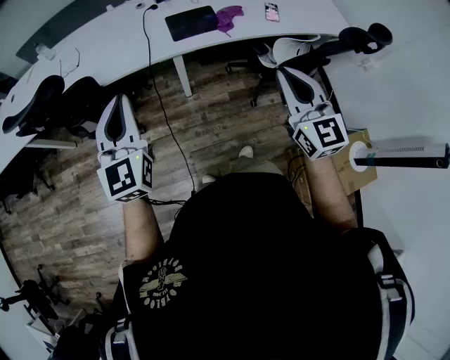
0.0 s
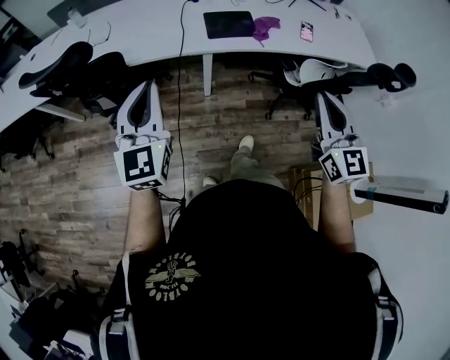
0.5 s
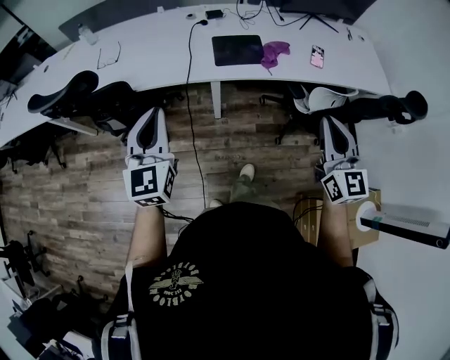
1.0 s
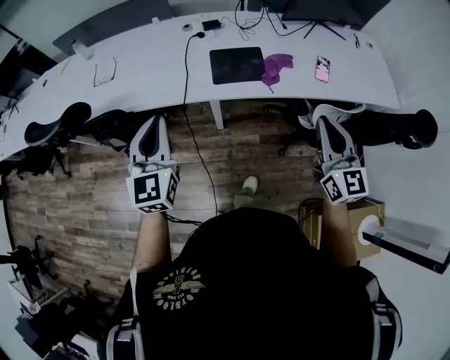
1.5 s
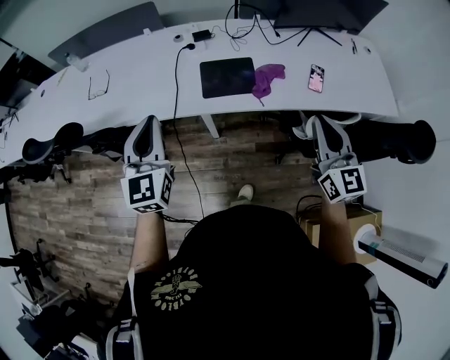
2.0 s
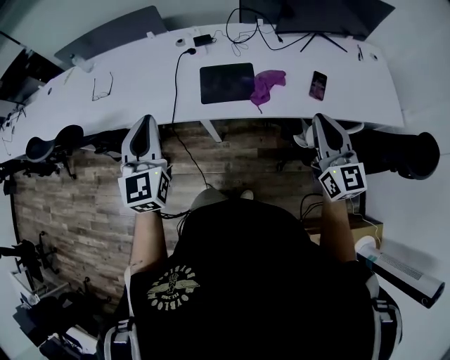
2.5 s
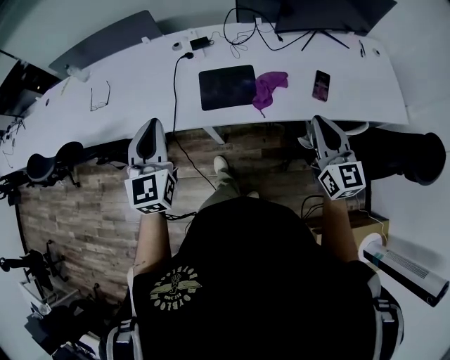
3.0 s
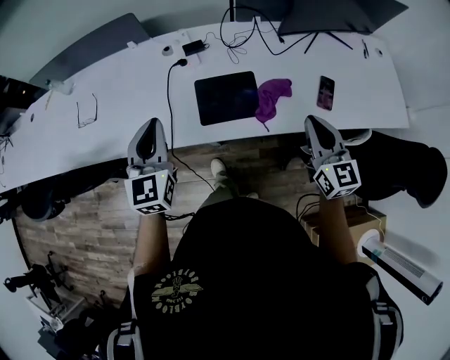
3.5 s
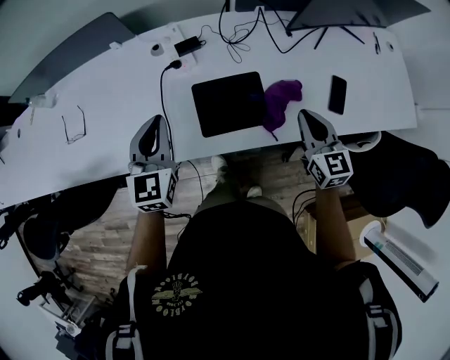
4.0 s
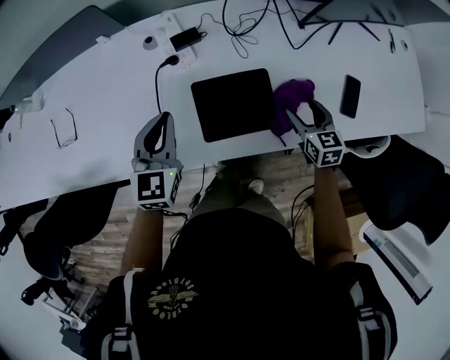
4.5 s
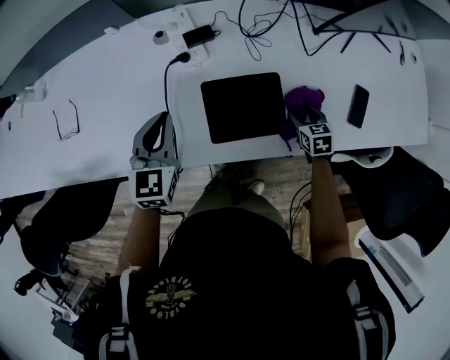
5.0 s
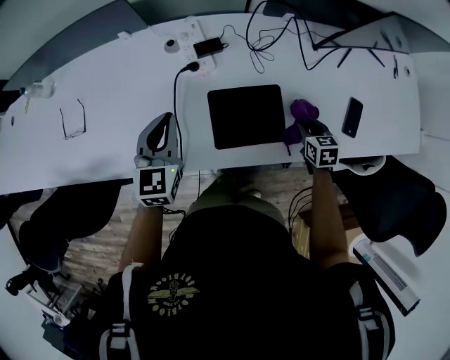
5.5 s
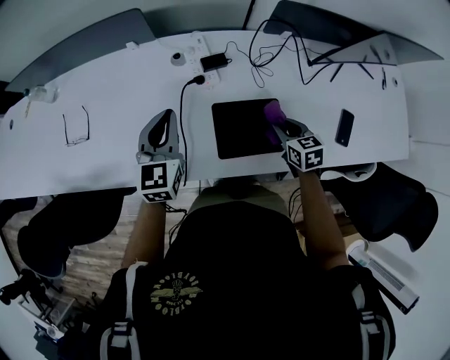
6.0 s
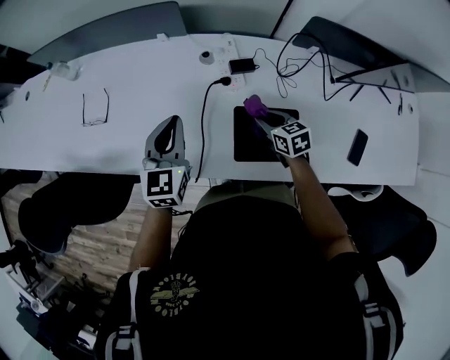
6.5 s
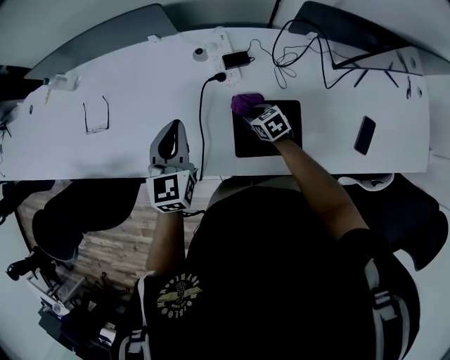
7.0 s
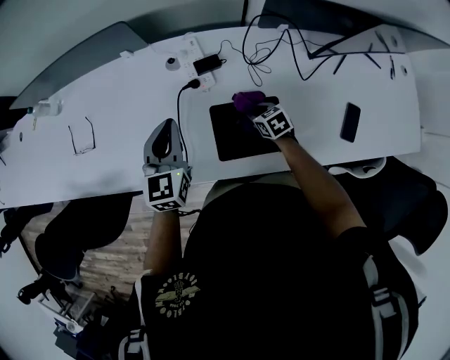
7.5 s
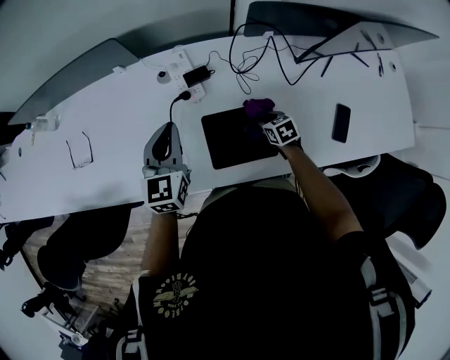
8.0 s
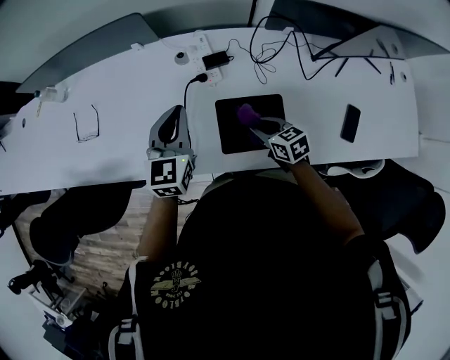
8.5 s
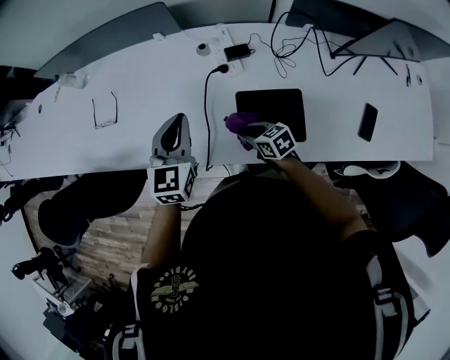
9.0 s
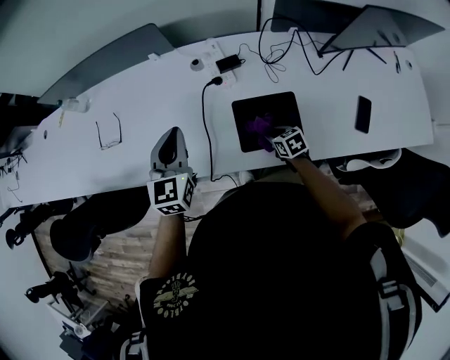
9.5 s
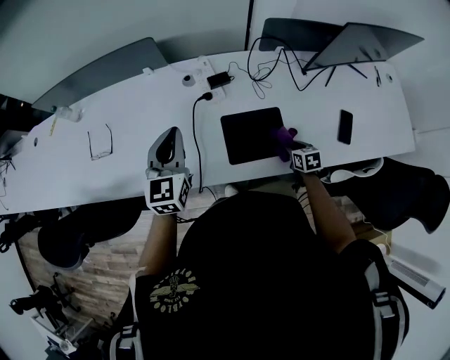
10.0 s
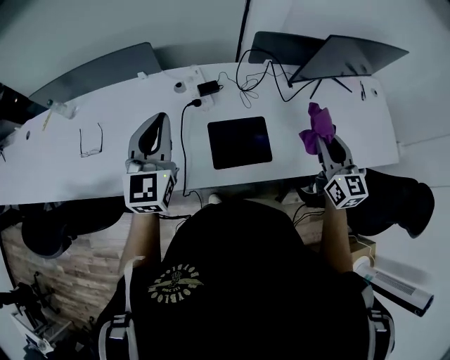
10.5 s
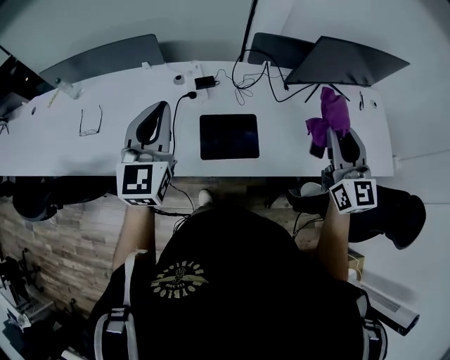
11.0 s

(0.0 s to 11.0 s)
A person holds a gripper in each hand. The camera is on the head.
0.0 s - 2.0 s: The left gripper moves forward, some 20 cm; the right gripper shifts approximately 25 cm forward and to the right.
2.0 s - 3.5 s: The left gripper shifts approximately 15 cm forward, while the right gripper moves forward and downward, approximately 20 cm.
3.5 s - 5.5 s: The right gripper heads downward and forward, covering roughly 30 cm, tilts its fingers approximately 40 degrees downward, and opens, then closes again, while the left gripper moves forward and downward, roughly 20 cm.
5.5 s - 7.5 s: The right gripper changes place by about 20 cm, and turns by roughly 20 degrees.
7.5 s - 9.0 s: The left gripper heads to the left, covering some 5 cm, while the right gripper heads to the left and backward, covering some 15 cm.
9.0 s - 11.0 s: The left gripper goes approximately 20 cm upward. The right gripper goes approximately 40 cm upward, and tips its fingers upward by roughly 40 degrees.

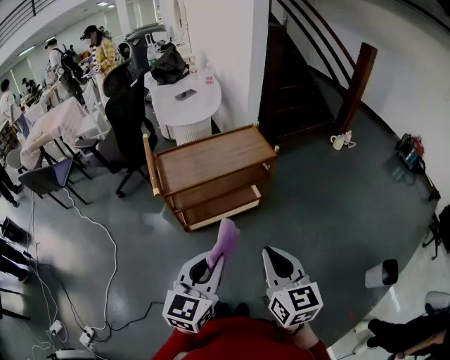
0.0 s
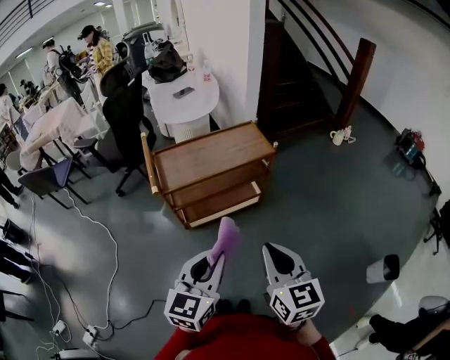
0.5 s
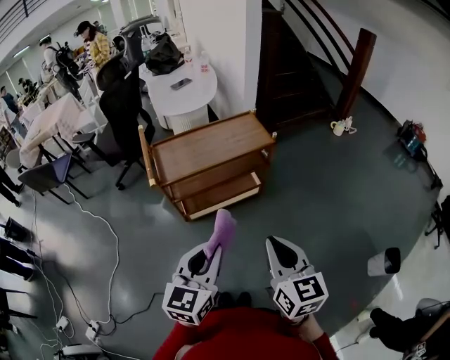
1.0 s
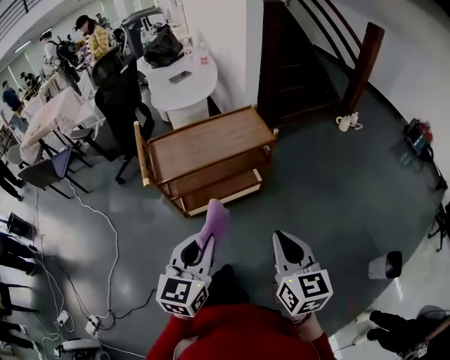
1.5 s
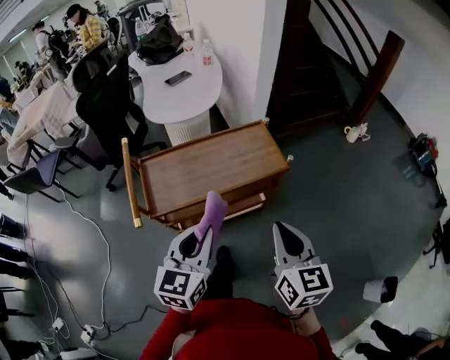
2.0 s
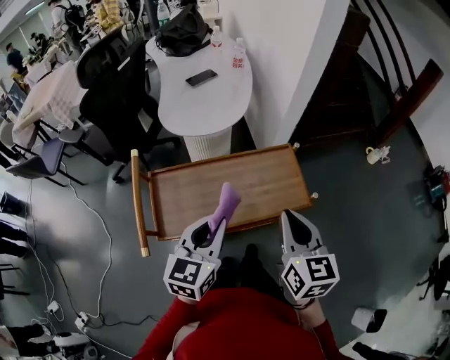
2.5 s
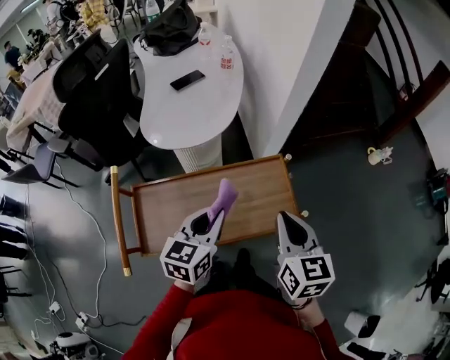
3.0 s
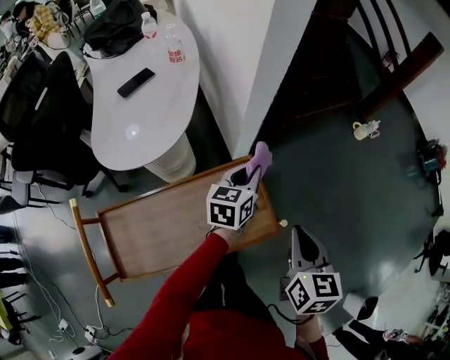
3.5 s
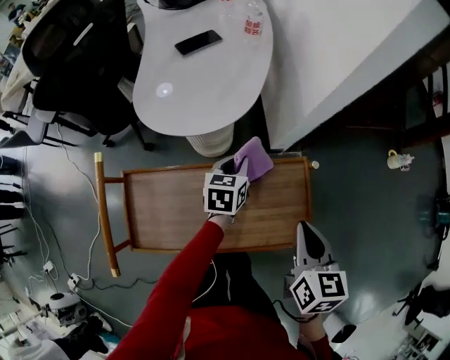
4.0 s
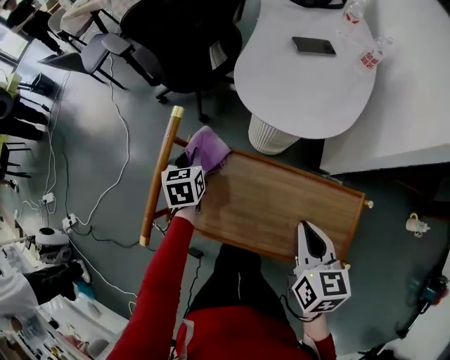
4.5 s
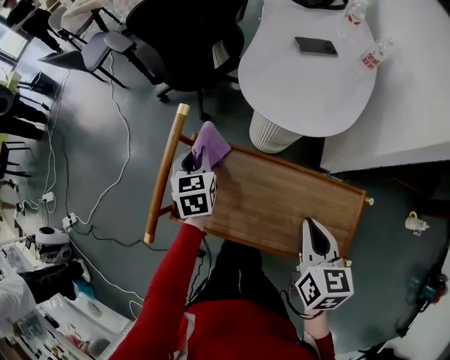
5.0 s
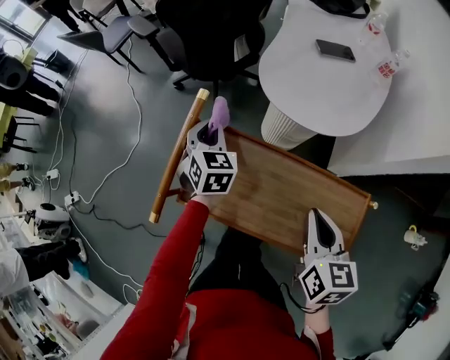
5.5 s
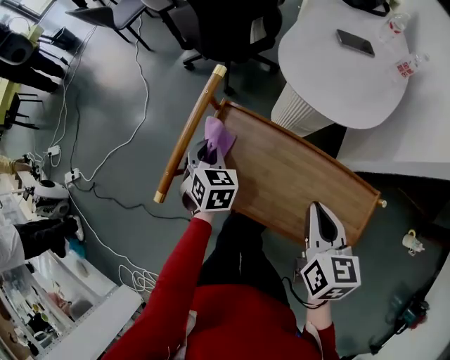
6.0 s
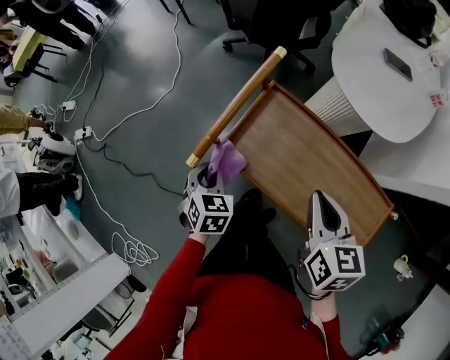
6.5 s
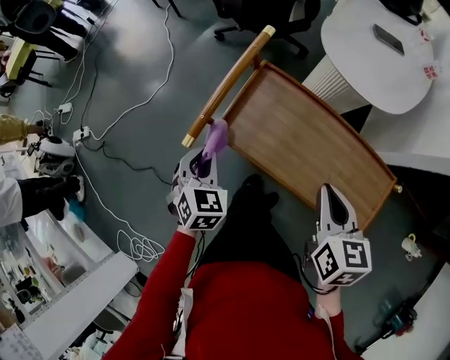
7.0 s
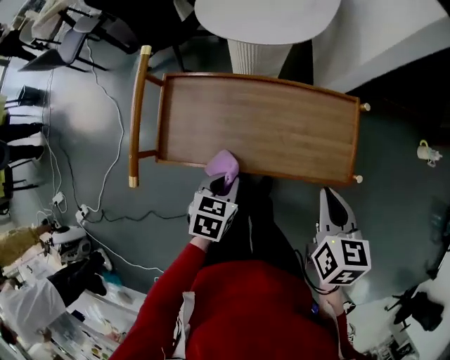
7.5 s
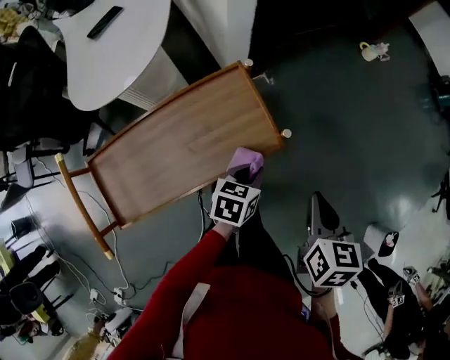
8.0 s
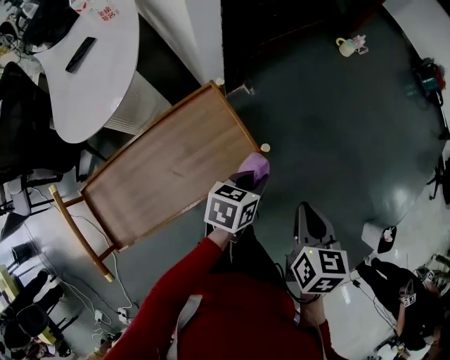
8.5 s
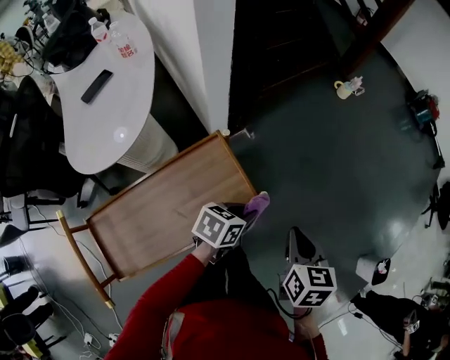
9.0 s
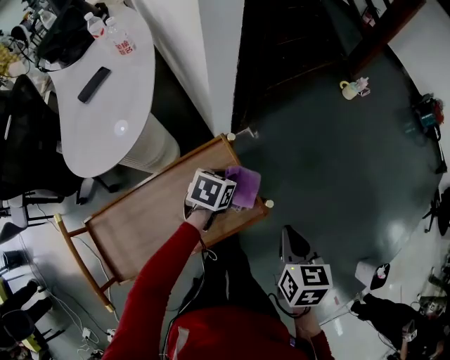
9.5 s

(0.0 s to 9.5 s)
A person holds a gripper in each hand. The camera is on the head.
0.0 s - 2.0 s: The grippers both shift forward by roughly 20 cm.
2.0 s - 4.0 s: The grippers both shift forward by approximately 40 cm. The right gripper rotates about 20 degrees, while the left gripper turns by about 30 degrees.
4.0 s - 5.5 s: The right gripper changes place by approximately 20 cm, and rotates approximately 30 degrees; the left gripper shifts by some 35 cm, and turns by approximately 50 degrees.
5.5 s - 7.5 s: The right gripper moves about 15 cm, while the left gripper moves up and down over some 10 cm, changing direction 2 times, and turns by about 40 degrees.
7.5 s - 9.5 s: The left gripper shifts by approximately 35 cm, and changes its angle by roughly 40 degrees. The right gripper changes place by some 15 cm, and swivels approximately 30 degrees.

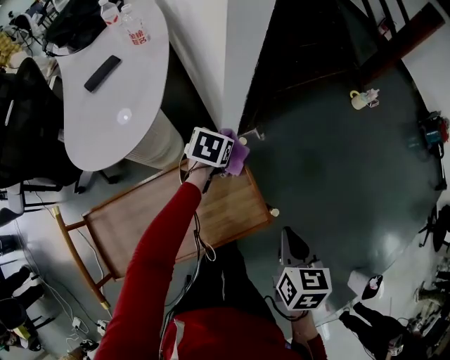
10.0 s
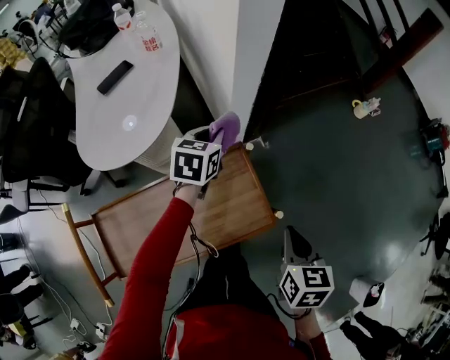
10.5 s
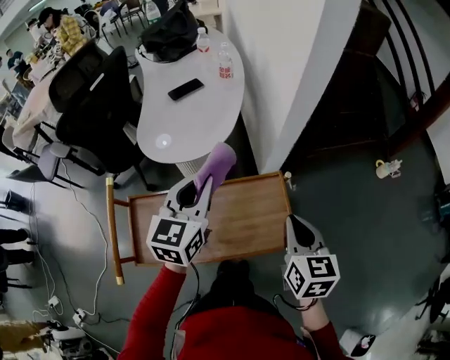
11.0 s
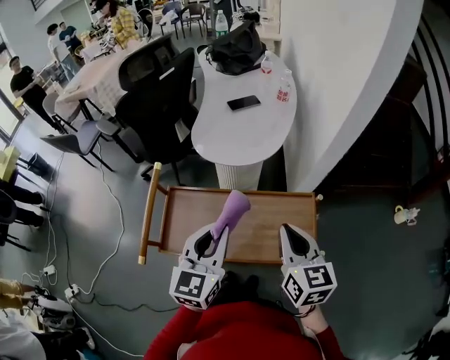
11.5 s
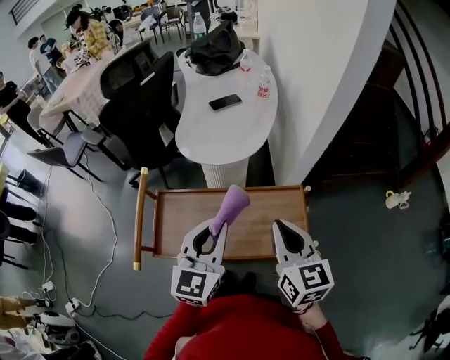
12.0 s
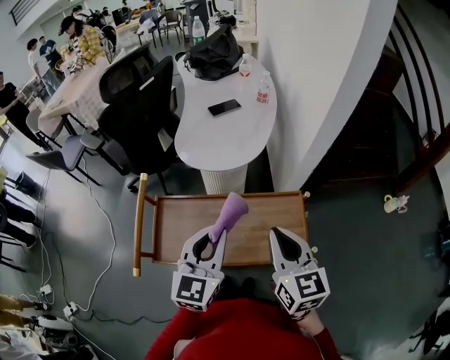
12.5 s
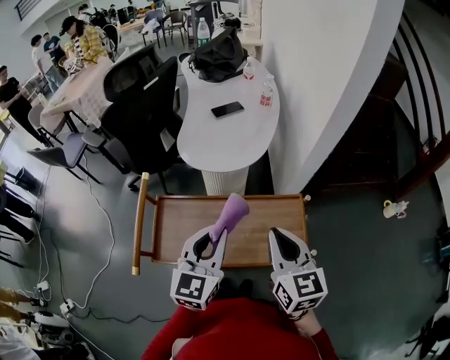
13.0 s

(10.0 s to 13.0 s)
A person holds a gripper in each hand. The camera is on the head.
10.0 s - 11.5 s: The left gripper ends up roughly 40 cm from where it was, and points its fingers some 50 degrees further upward. The right gripper moves some 25 cm, and rotates approximately 50 degrees.
11.5 s - 13.0 s: The grippers make only small movements.

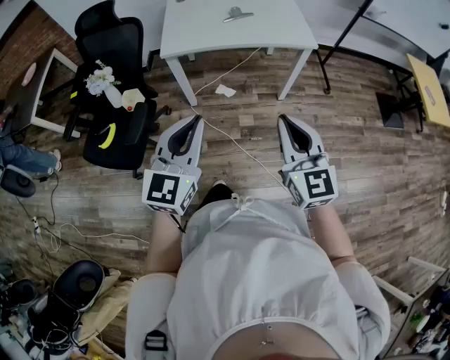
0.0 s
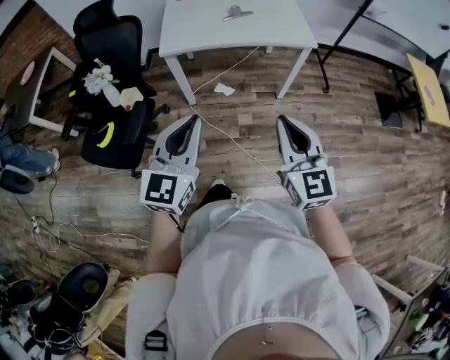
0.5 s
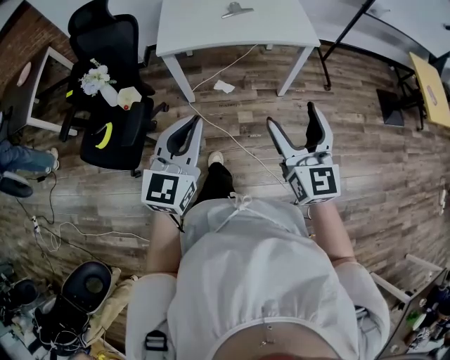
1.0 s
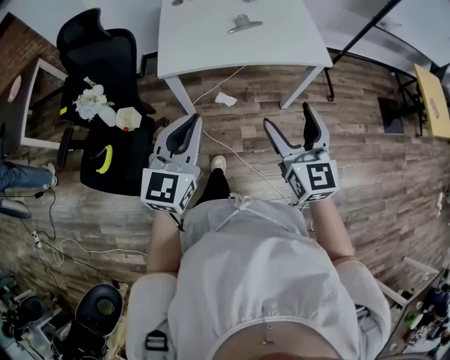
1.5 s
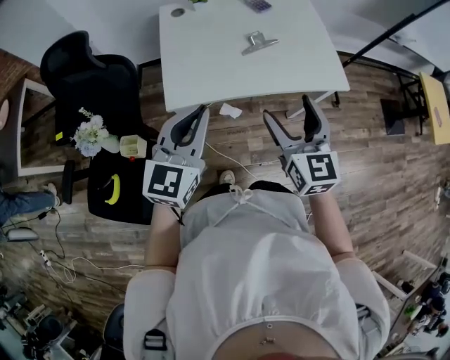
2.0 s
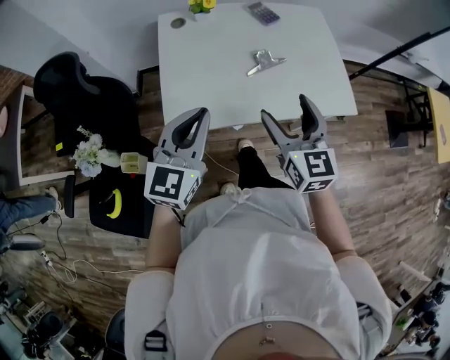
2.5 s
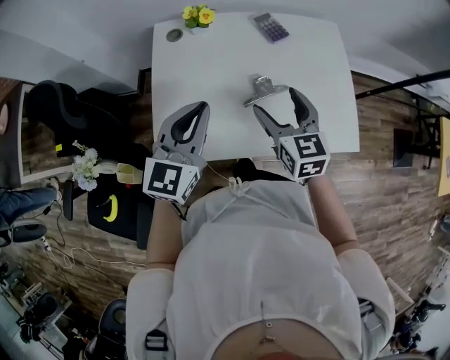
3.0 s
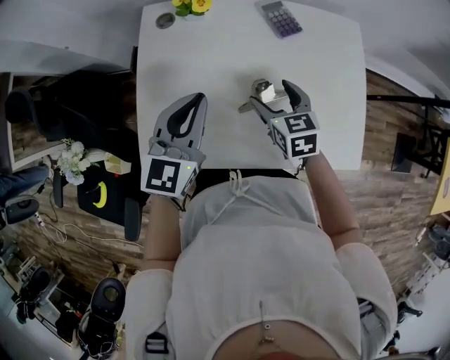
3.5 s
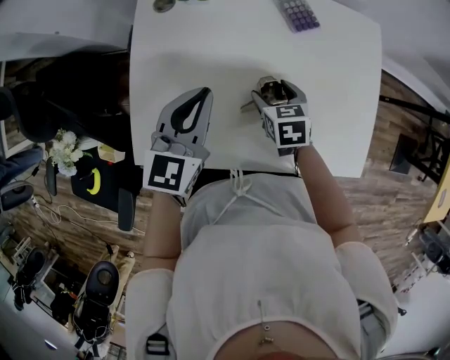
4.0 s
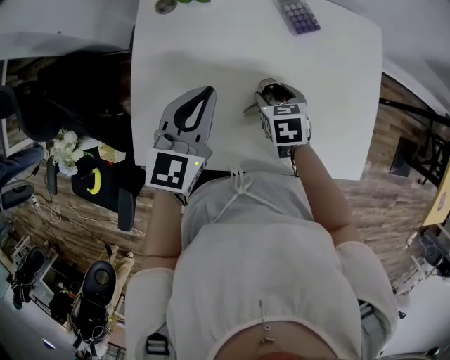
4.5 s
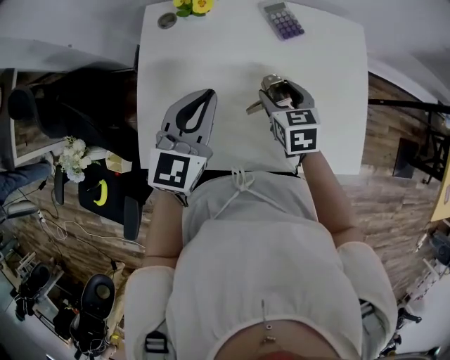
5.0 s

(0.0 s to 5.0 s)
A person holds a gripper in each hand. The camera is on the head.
0.0 s - 2.5 s: The pair of grippers is taken forward, about 50 cm. The right gripper opens its fingers.
2.5 s - 5.0 s: The left gripper is displaced forward and to the right by approximately 25 cm, while the right gripper is displaced forward and downward by approximately 30 cm, and angles its fingers downward, by some 30 degrees.
